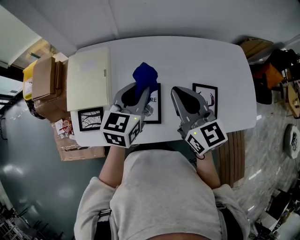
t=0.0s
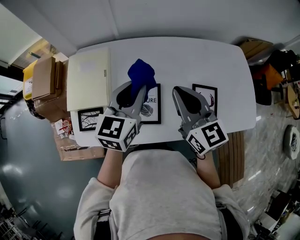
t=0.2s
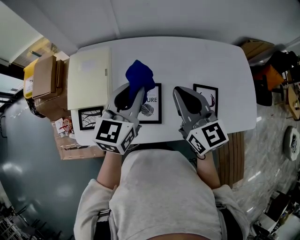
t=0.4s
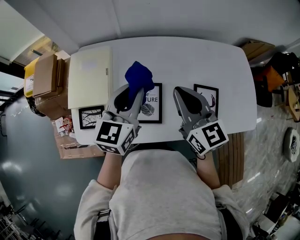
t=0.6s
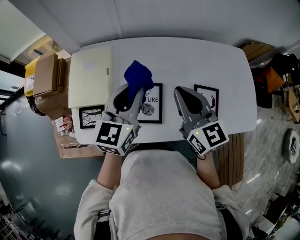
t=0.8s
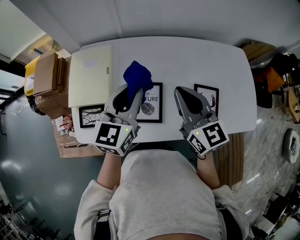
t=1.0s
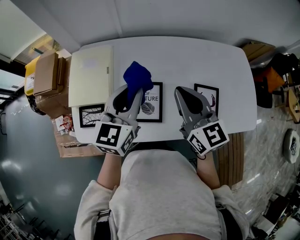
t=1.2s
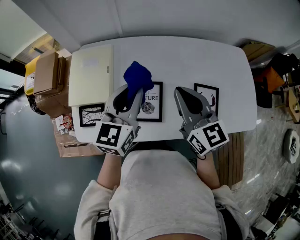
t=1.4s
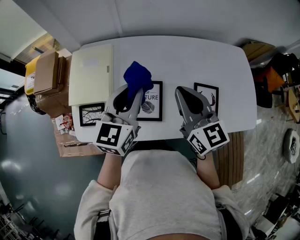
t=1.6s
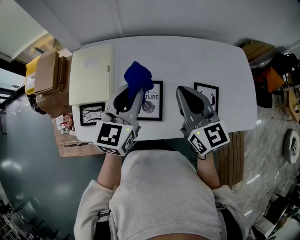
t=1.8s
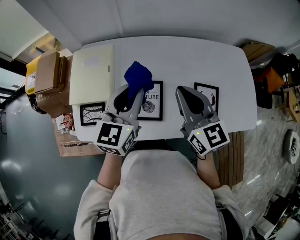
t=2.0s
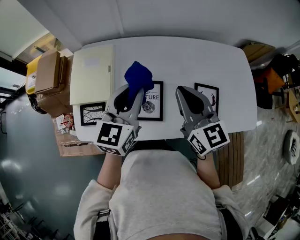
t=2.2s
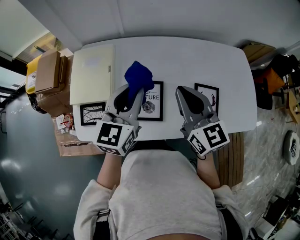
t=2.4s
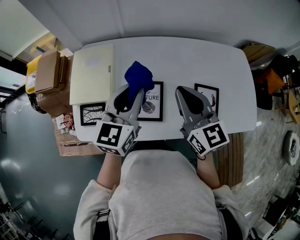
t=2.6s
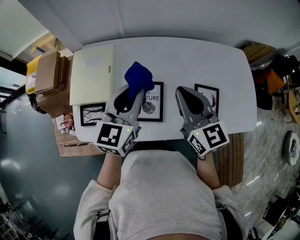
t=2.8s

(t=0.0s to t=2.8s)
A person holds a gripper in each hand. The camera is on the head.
t=0.0s - t=1.4s: The left gripper shifts by about 5 cm.
t=1.4s - t=2.8s: Both grippers stay about where they are.

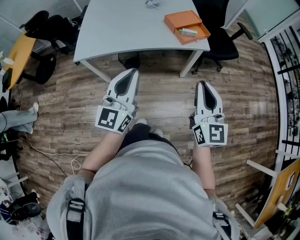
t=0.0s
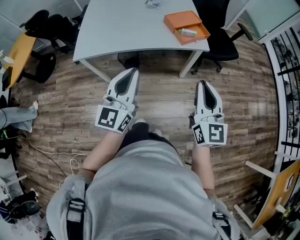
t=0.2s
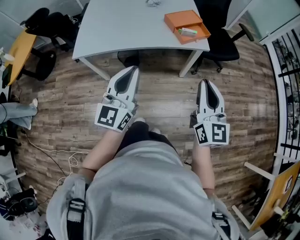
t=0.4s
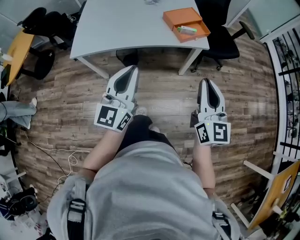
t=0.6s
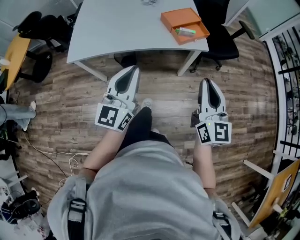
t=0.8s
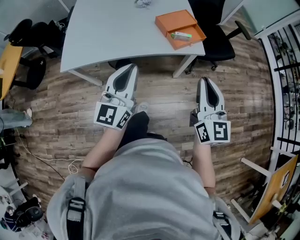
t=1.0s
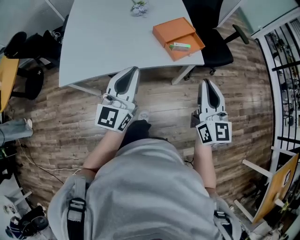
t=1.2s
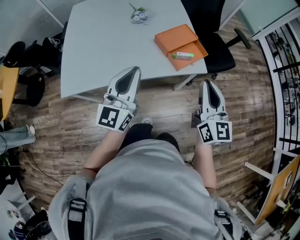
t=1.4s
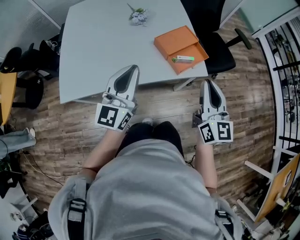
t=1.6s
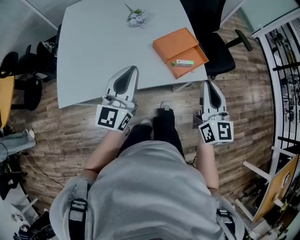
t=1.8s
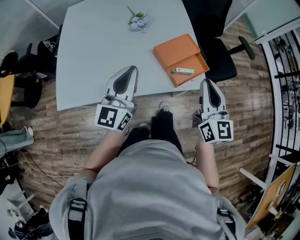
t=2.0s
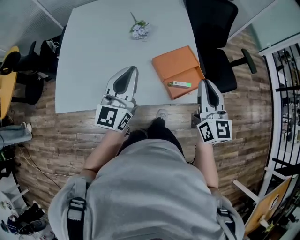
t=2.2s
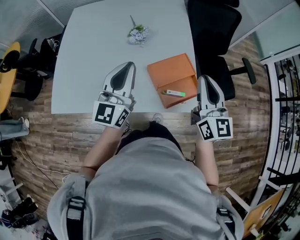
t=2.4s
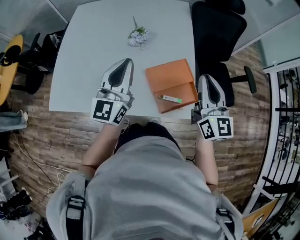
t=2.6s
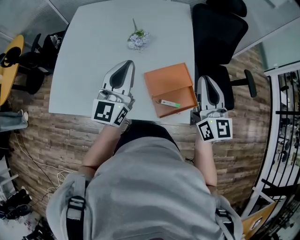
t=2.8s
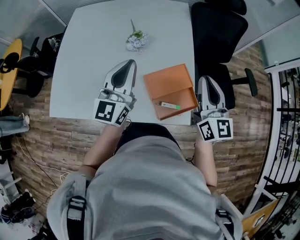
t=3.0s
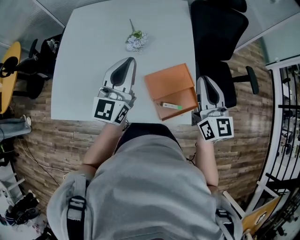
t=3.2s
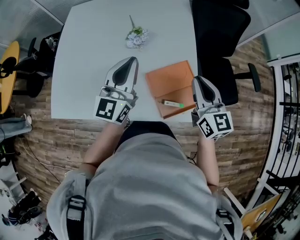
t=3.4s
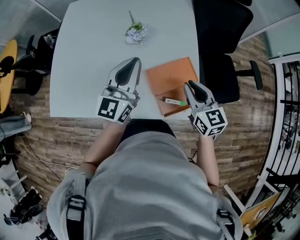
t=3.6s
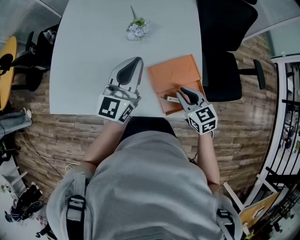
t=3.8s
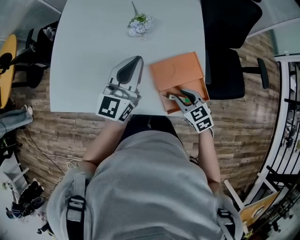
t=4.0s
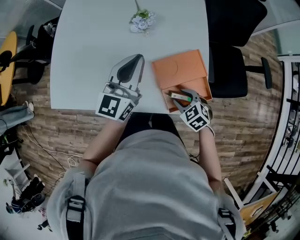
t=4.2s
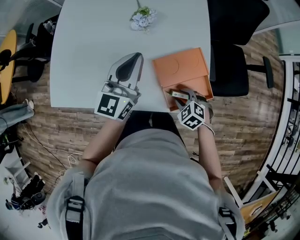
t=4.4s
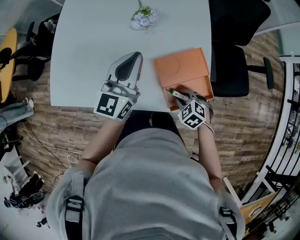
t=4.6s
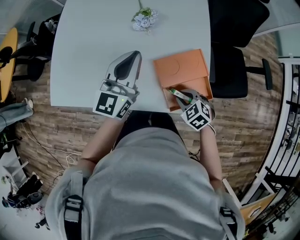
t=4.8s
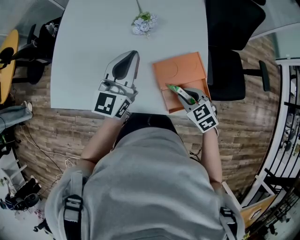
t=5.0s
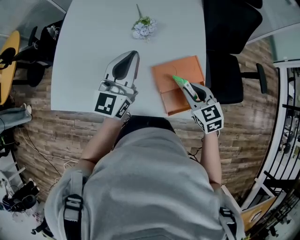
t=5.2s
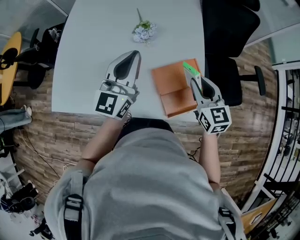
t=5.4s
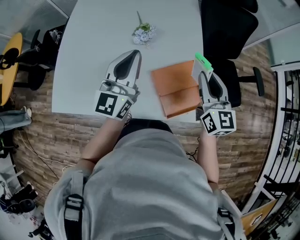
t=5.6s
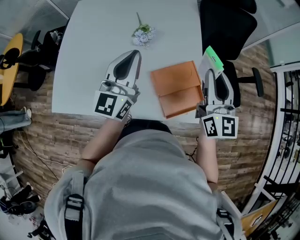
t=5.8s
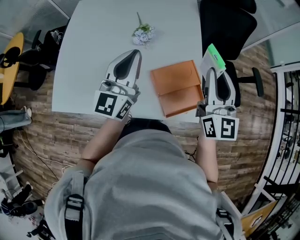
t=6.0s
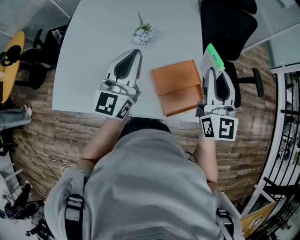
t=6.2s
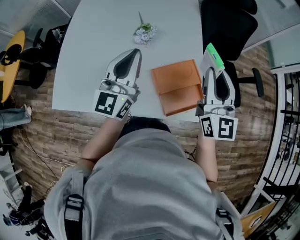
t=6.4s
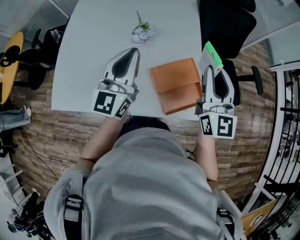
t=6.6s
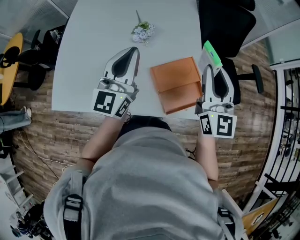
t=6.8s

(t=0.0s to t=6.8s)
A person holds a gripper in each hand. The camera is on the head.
t=0.0s - t=1.4s: The grippers both shift forward by roughly 30 cm.
t=1.4s - t=2.8s: The grippers both shift forward by about 35 cm.
t=2.8s - t=4.0s: The left gripper moves downward and forward, approximately 10 cm. The right gripper shifts some 25 cm downward, and tips its fingers downward by roughly 50 degrees.
t=4.0s - t=5.4s: The left gripper moves approximately 5 cm; the right gripper shifts some 15 cm upward and forward, and changes its angle by some 30 degrees.
t=5.4s - t=6.8s: The right gripper moves upward, approximately 15 cm, and changes its angle by about 30 degrees.

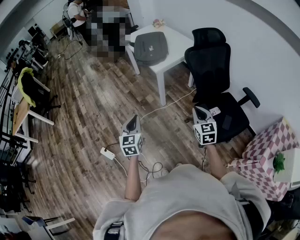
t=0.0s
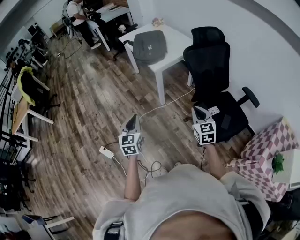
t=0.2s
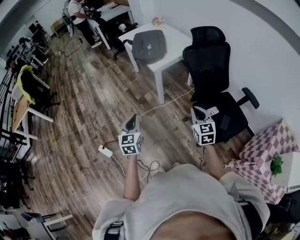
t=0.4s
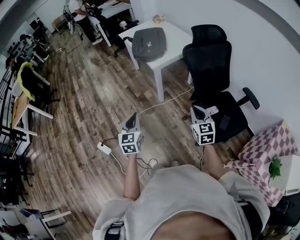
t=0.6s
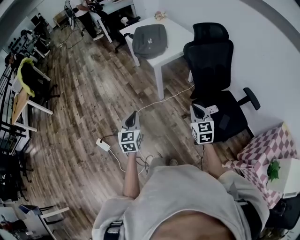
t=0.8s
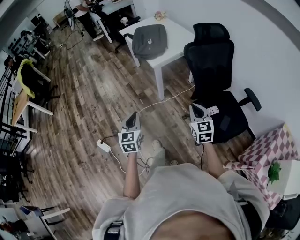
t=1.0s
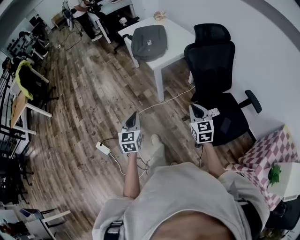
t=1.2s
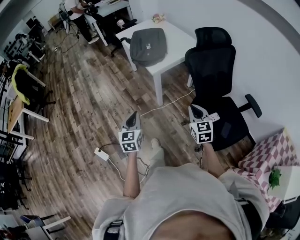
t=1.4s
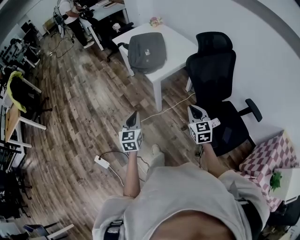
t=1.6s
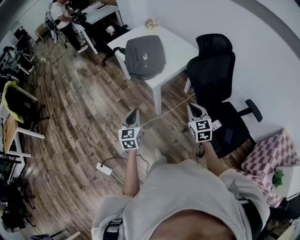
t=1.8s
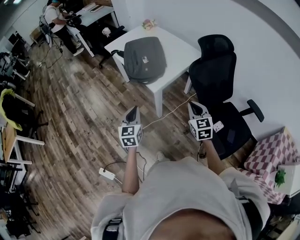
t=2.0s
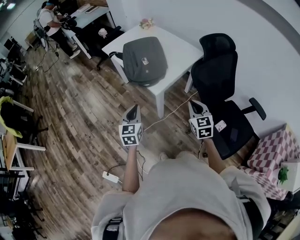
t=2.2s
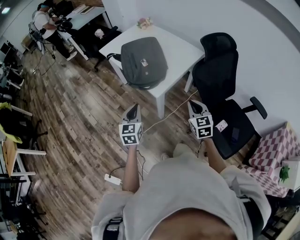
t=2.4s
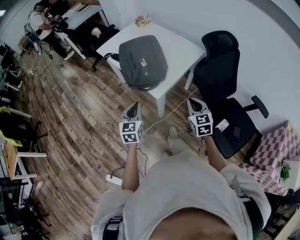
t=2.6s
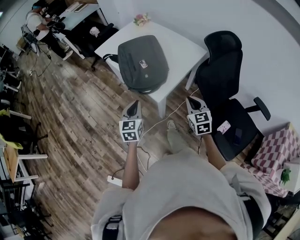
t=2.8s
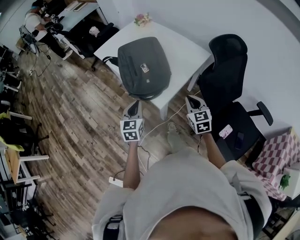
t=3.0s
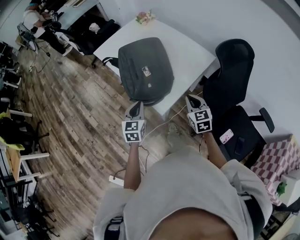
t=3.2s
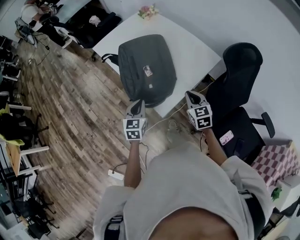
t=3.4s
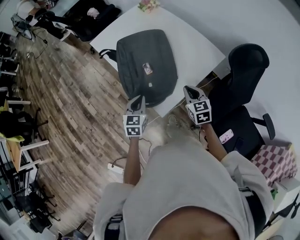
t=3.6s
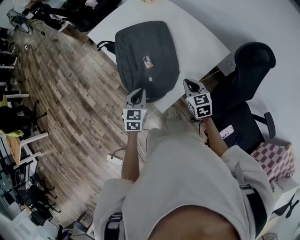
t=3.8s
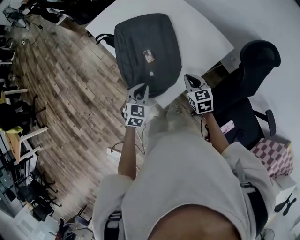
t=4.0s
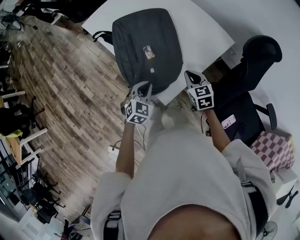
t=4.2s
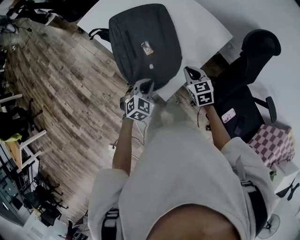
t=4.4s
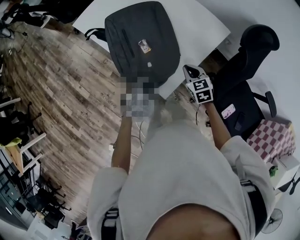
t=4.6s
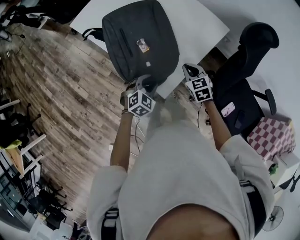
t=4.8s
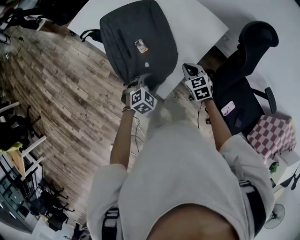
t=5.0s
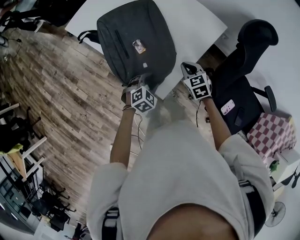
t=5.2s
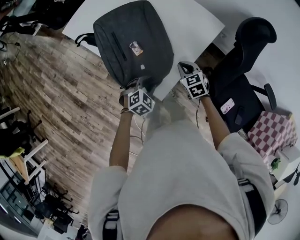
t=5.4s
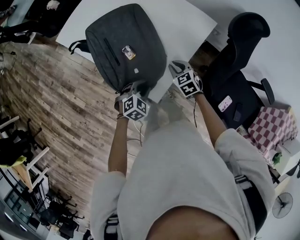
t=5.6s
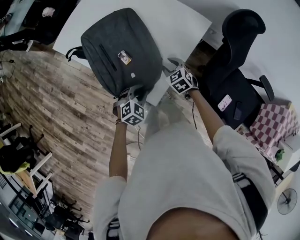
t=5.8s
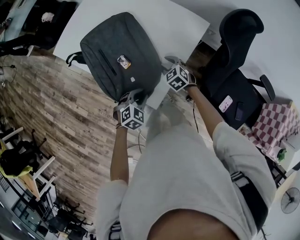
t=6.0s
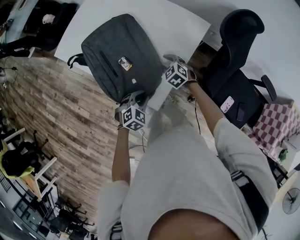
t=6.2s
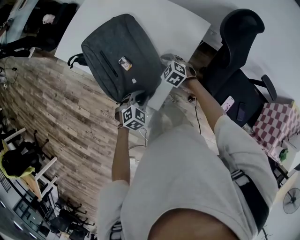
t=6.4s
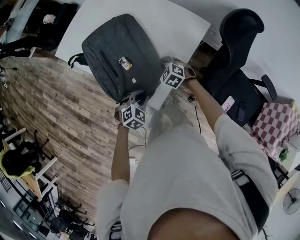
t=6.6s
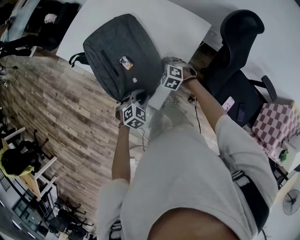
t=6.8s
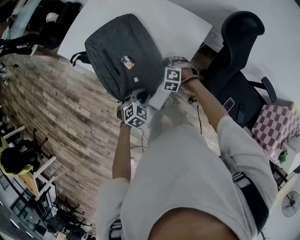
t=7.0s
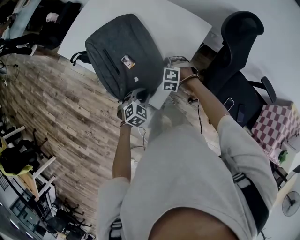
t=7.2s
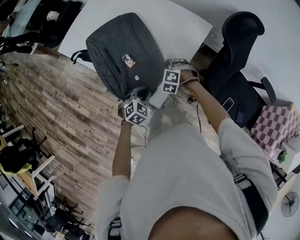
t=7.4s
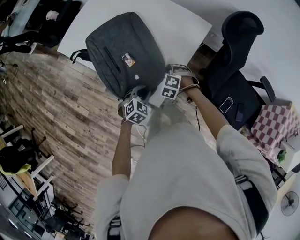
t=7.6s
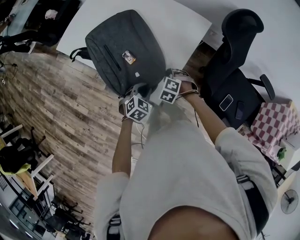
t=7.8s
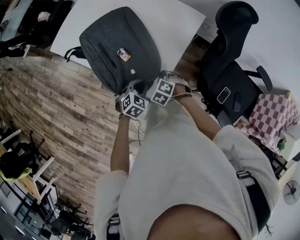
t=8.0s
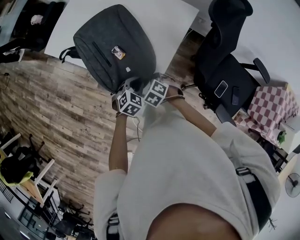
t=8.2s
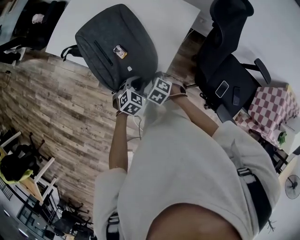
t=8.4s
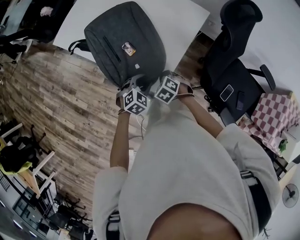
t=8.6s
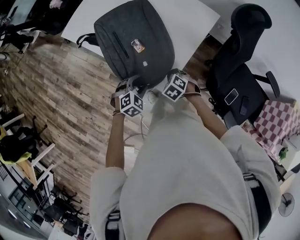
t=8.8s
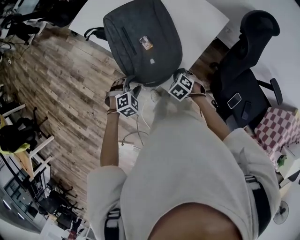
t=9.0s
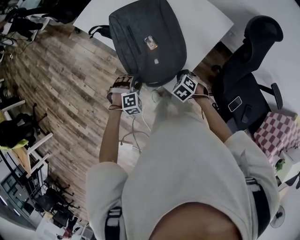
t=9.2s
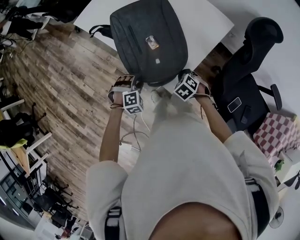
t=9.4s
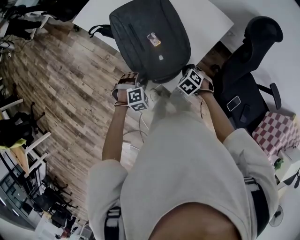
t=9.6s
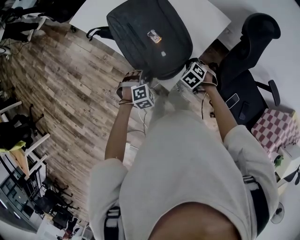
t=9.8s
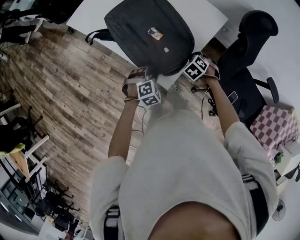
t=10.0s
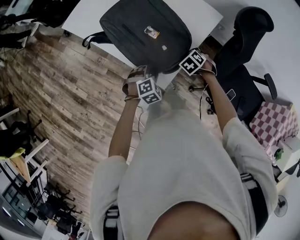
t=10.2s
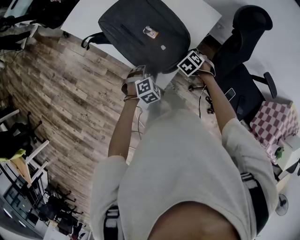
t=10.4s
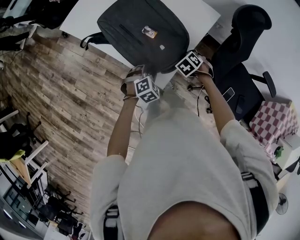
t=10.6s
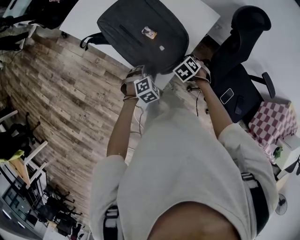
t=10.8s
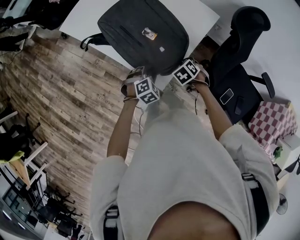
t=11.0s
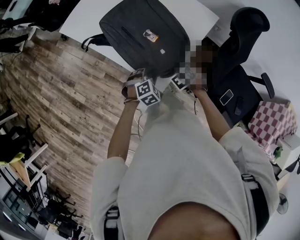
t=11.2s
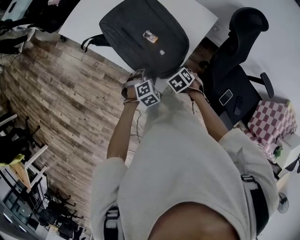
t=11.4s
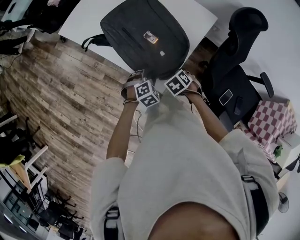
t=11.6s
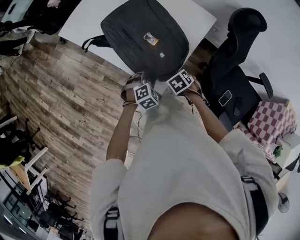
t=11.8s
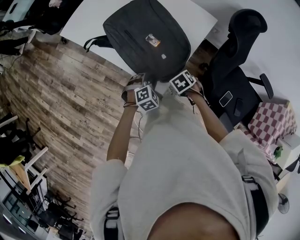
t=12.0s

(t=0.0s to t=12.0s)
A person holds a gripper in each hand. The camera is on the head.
t=0.0s - t=1.6s: The two grippers go approximately 15 cm forward.
t=1.6s - t=3.0s: Both grippers move forward, approximately 30 cm.
t=3.0s - t=4.4s: The right gripper travels forward and downward by roughly 20 cm. The left gripper travels downward, forward and to the right by approximately 15 cm, and swivels some 40 degrees.
t=4.4s - t=6.0s: The right gripper heads downward and forward, covering roughly 10 cm, and opens its fingers. Meanwhile the left gripper moves downward, some 5 cm, and opens, then closes once more.
t=6.0s - t=7.6s: The right gripper swivels roughly 40 degrees, and closes up.
t=7.6s - t=9.0s: The right gripper heads backward, covering some 10 cm, and swivels approximately 20 degrees, while the left gripper moves to the left and backward, roughly 10 cm, changes its angle by approximately 20 degrees, and opens its fingers.
t=9.0s - t=10.4s: The right gripper moves about 15 cm; the left gripper shifts by about 10 cm.
t=10.4s - t=12.0s: The right gripper ends up some 10 cm from where it was, and swivels some 20 degrees.

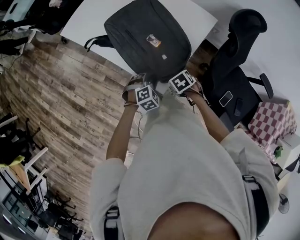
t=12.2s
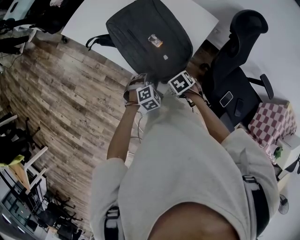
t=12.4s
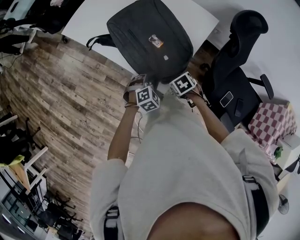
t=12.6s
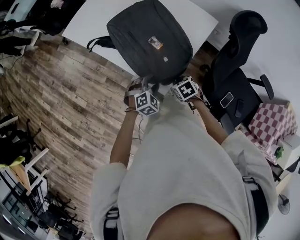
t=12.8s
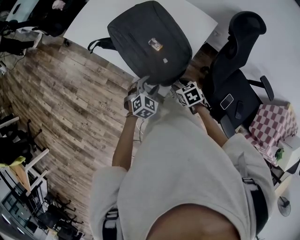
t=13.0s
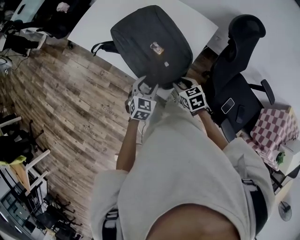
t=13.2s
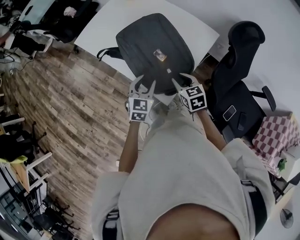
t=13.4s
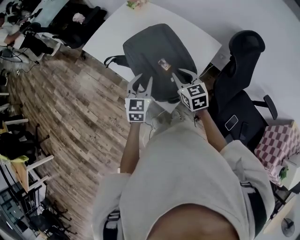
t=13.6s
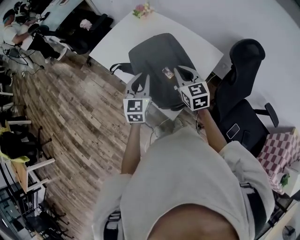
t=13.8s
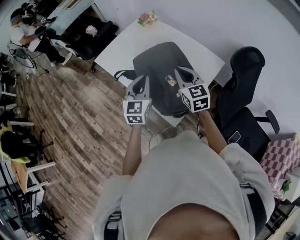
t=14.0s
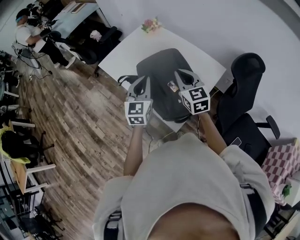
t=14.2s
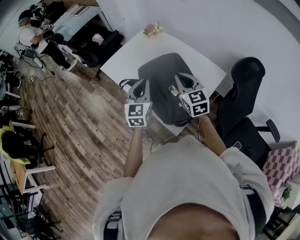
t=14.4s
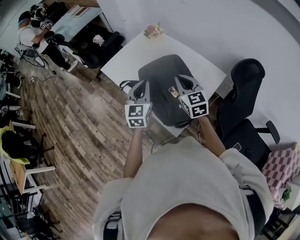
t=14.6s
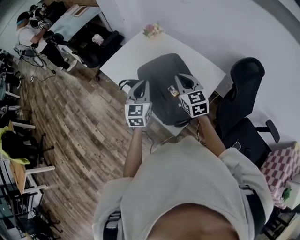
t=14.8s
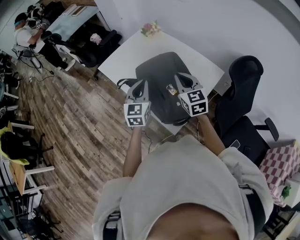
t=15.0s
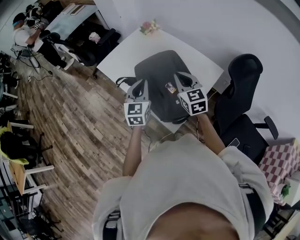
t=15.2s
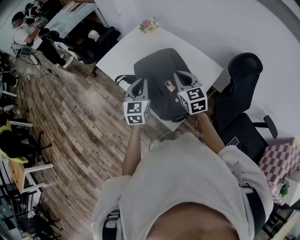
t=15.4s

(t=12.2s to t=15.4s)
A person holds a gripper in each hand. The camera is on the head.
t=12.2s - t=13.8s: The grippers both shift upward by some 25 cm. The left gripper tips its fingers upward by roughly 40 degrees, and opens and closes again; the right gripper points its fingers some 60 degrees further upward, and opens and closes again.
